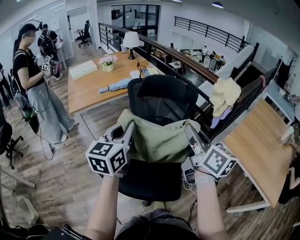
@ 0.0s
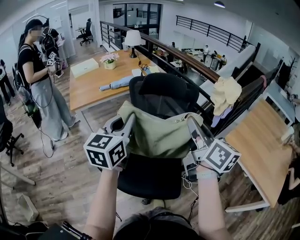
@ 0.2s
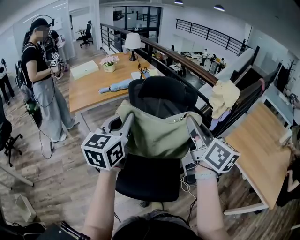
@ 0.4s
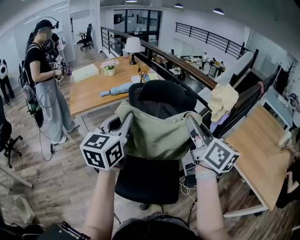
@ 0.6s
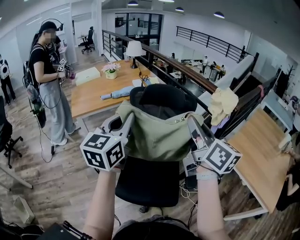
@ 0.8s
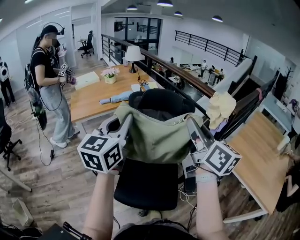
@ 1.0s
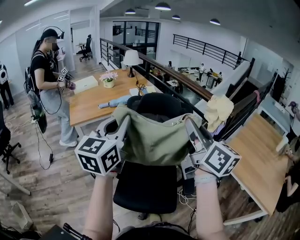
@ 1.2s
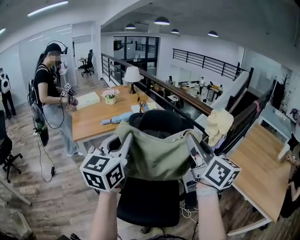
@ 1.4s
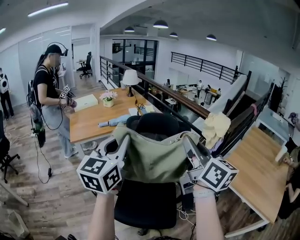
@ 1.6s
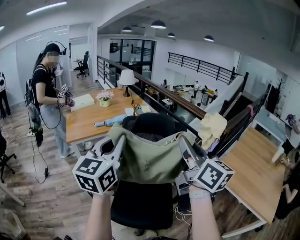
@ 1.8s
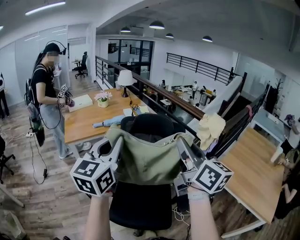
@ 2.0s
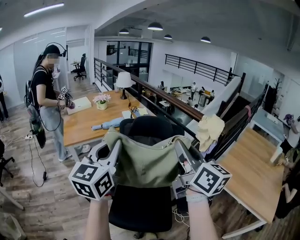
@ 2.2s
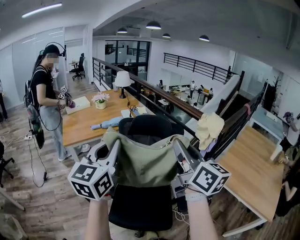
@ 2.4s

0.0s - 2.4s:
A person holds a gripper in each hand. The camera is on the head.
0.0s - 1.2s: Both grippers travel together upward, roughly 10 cm.
1.2s - 2.4s: The grippers stay close to where they were, moving slightly.

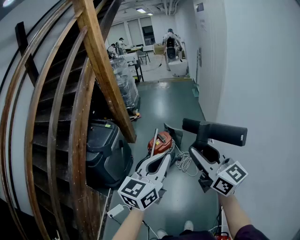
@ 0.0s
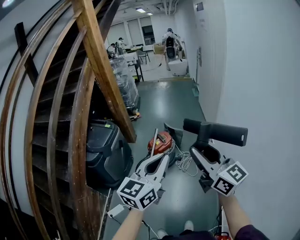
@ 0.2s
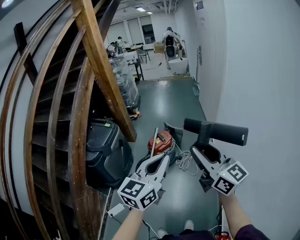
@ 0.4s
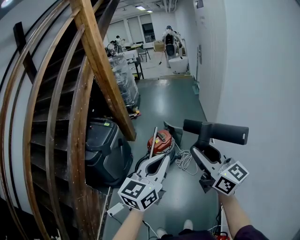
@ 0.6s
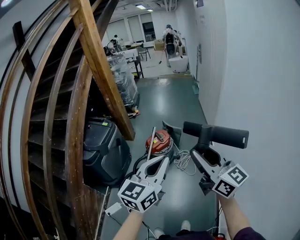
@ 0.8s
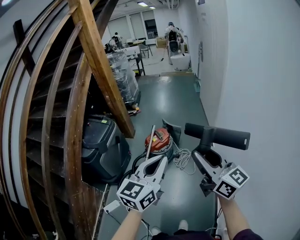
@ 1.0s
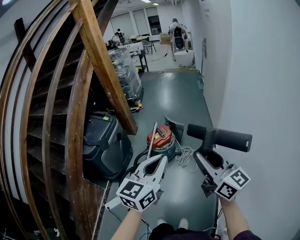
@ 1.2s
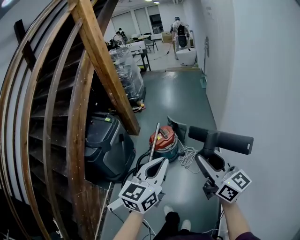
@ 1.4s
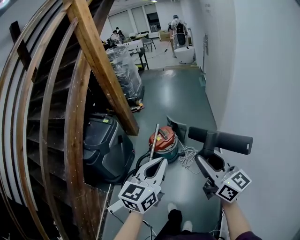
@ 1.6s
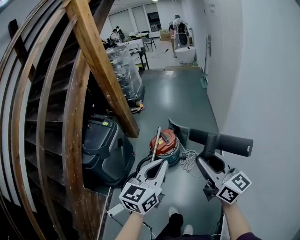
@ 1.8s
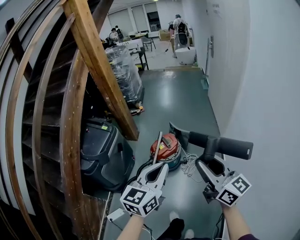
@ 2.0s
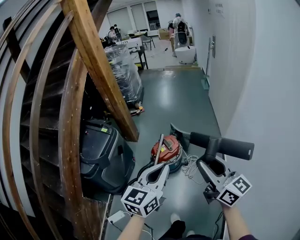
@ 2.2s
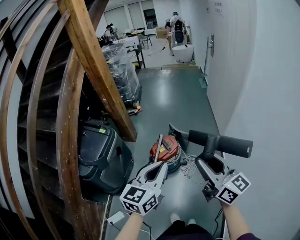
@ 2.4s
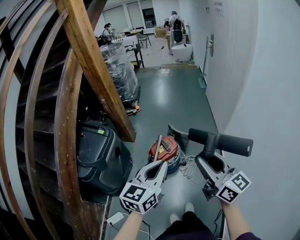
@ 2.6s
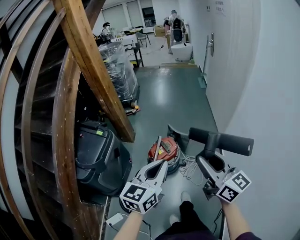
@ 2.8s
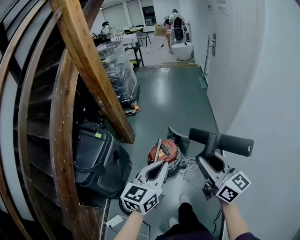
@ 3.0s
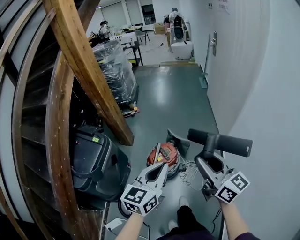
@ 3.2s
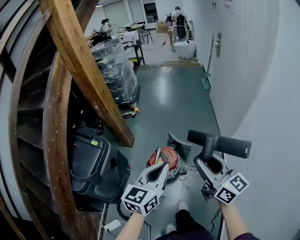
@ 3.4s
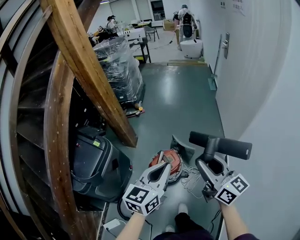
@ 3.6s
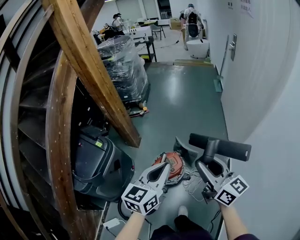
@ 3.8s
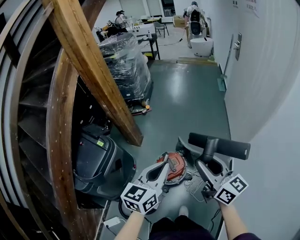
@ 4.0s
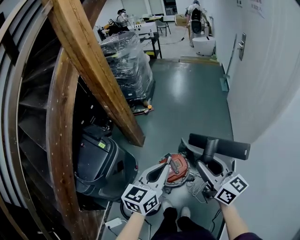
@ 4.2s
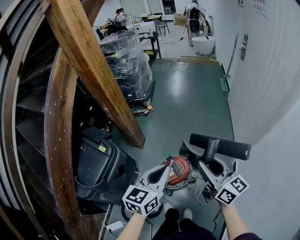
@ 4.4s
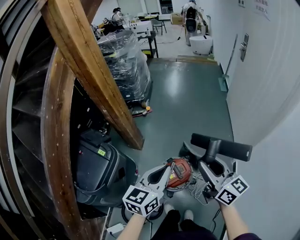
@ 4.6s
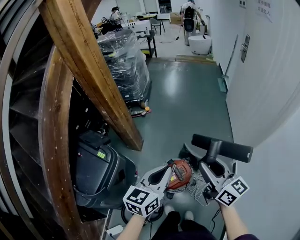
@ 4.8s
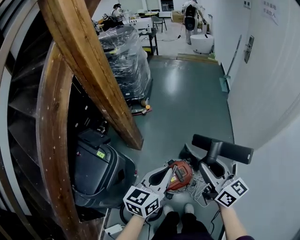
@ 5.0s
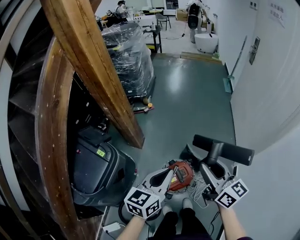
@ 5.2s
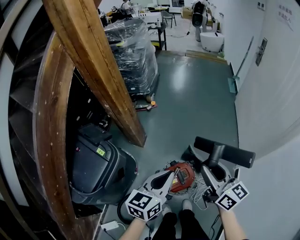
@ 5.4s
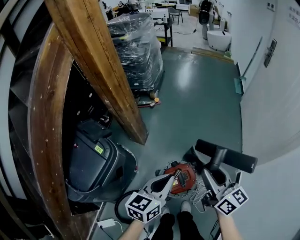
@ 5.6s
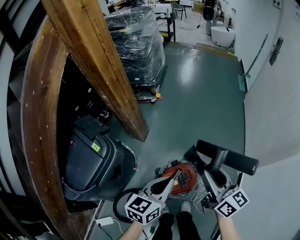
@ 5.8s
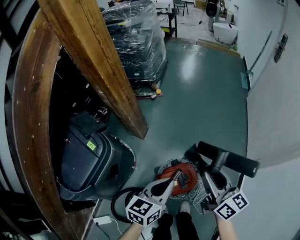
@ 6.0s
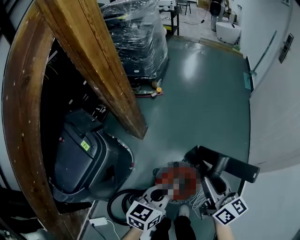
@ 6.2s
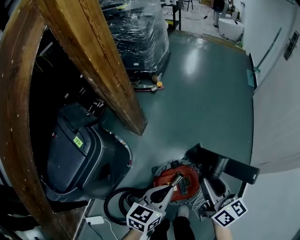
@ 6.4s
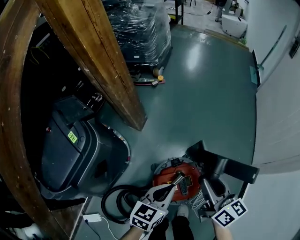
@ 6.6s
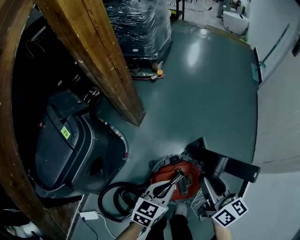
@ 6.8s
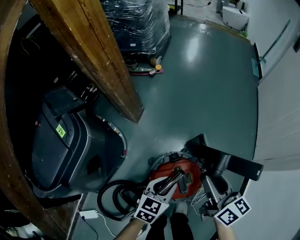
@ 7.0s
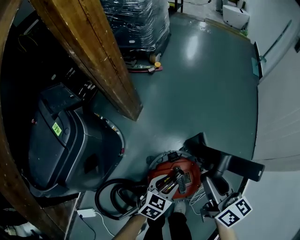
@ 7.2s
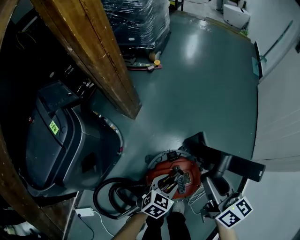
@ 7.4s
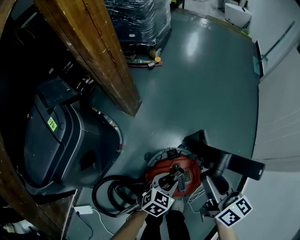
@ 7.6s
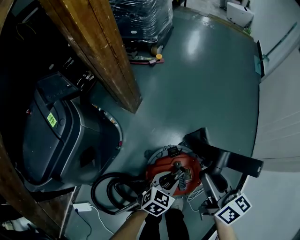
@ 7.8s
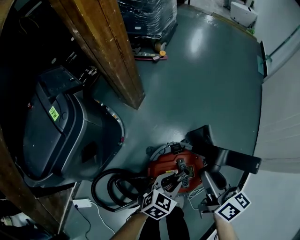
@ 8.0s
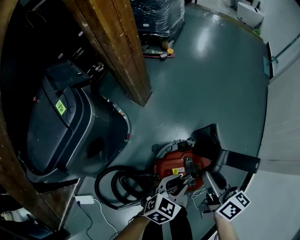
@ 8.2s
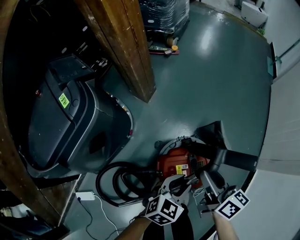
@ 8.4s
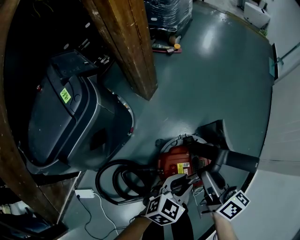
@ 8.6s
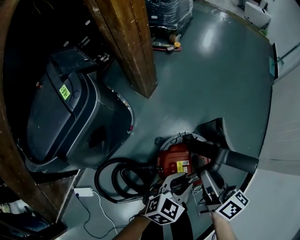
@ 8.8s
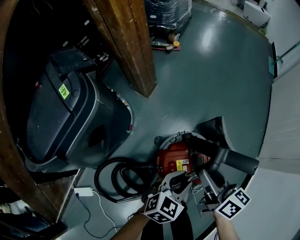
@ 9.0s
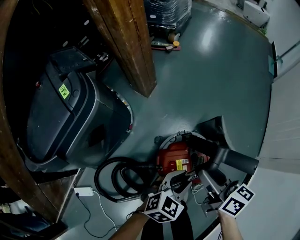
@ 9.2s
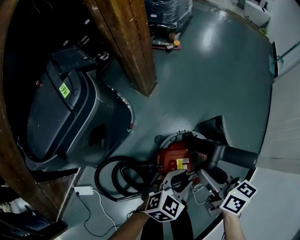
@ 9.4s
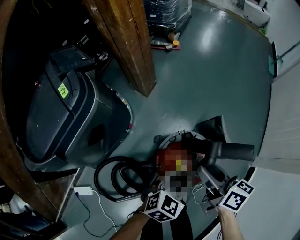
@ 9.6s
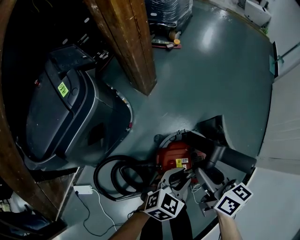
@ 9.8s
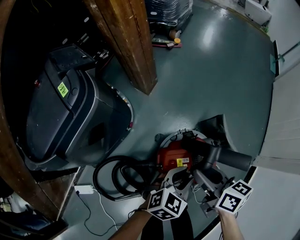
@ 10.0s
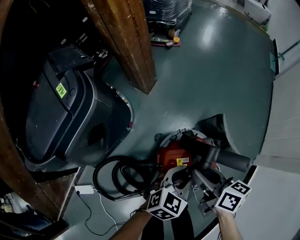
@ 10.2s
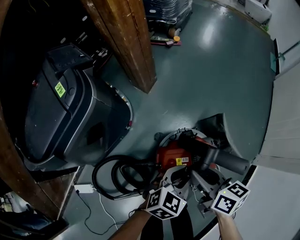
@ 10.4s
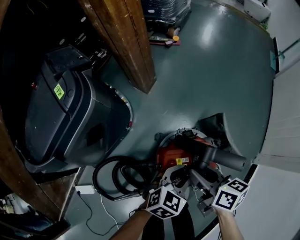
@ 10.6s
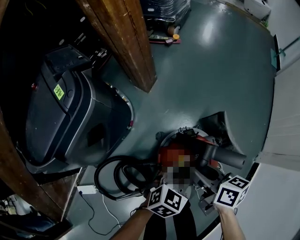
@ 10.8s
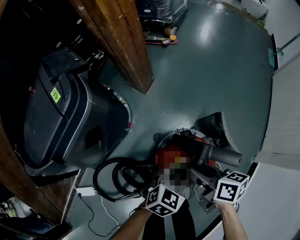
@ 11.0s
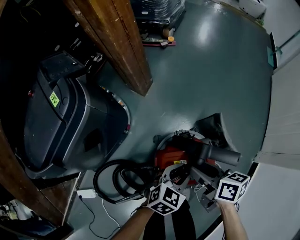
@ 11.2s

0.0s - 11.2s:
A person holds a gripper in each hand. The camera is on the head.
0.0s - 1.6s: The right gripper is displaced forward, downward and to the right by about 15 cm. Meanwhile the left gripper heads forward and downward, covering roughly 10 cm.
1.6s - 3.2s: The two grippers go about 30 cm forward.
3.2s - 4.8s: Both grippers travel together forward, some 25 cm.
4.8s - 6.4s: The right gripper heads downward and forward, covering approximately 30 cm; the left gripper travels downward by approximately 30 cm.
6.4s - 8.0s: The left gripper shifts roughly 20 cm downward, changes its angle by about 20 degrees, and opens its fingers. Meanwhile the right gripper goes about 15 cm downward.
8.0s - 9.6s: The right gripper shifts some 5 cm to the left.
9.6s - 11.2s: The right gripper goes roughly 5 cm downward.

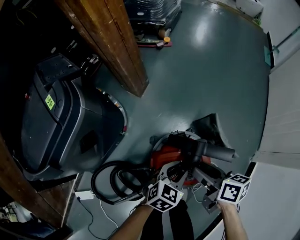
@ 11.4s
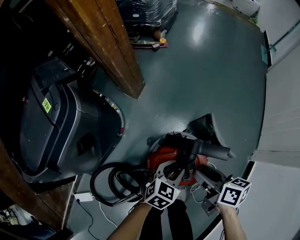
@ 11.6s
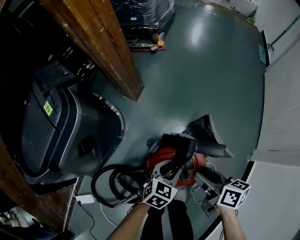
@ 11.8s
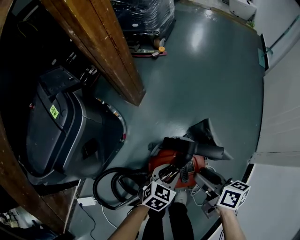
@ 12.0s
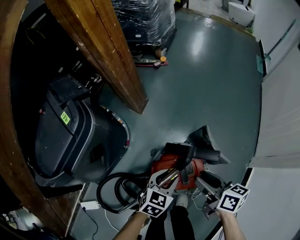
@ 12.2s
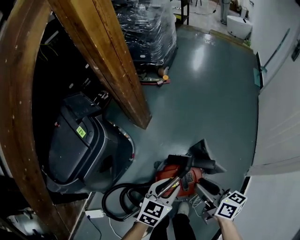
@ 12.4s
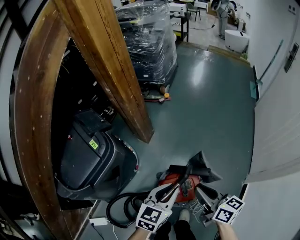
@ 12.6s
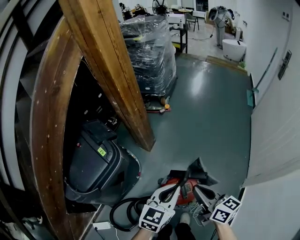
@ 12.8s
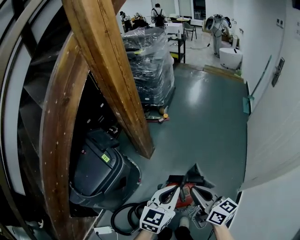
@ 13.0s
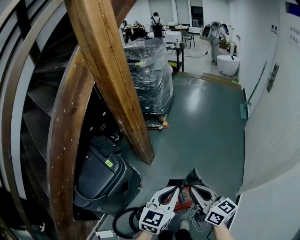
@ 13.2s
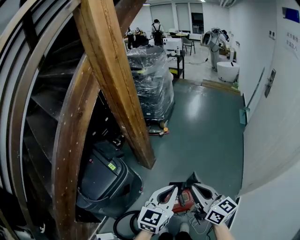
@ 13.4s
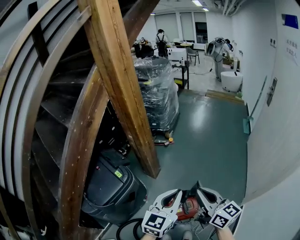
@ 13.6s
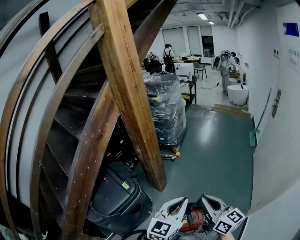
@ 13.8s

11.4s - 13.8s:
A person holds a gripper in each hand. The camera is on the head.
11.4s - 12.6s: The grippers both shift upward by about 25 cm. The right gripper rotates approximately 30 degrees, and closes up, while the left gripper swivels about 20 degrees.
12.6s - 13.8s: The two grippers go some 30 cm upward. The left gripper turns by roughly 20 degrees; the right gripper turns by about 20 degrees.

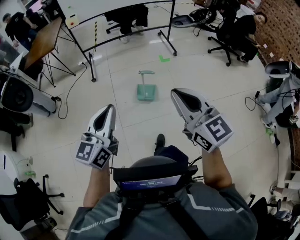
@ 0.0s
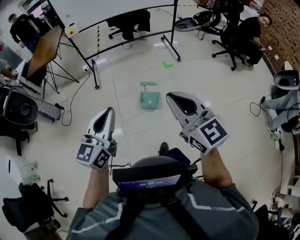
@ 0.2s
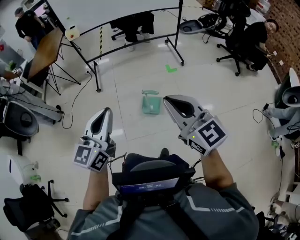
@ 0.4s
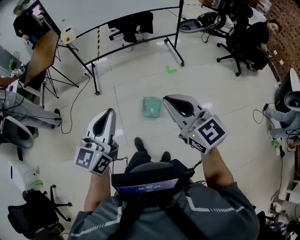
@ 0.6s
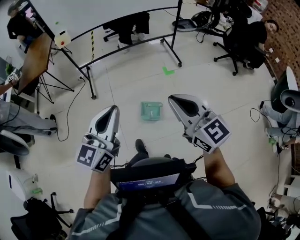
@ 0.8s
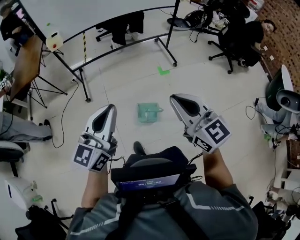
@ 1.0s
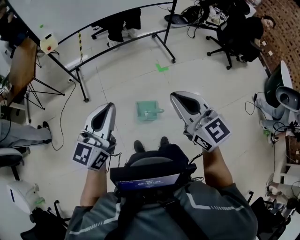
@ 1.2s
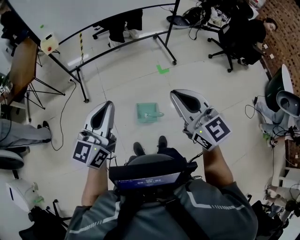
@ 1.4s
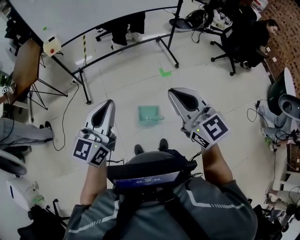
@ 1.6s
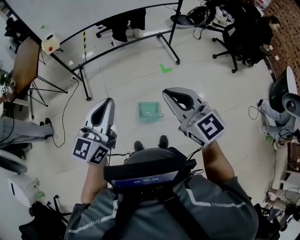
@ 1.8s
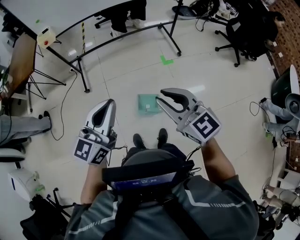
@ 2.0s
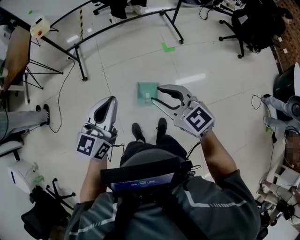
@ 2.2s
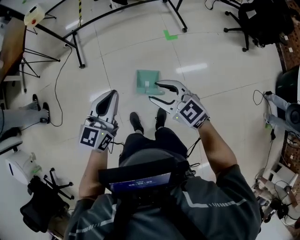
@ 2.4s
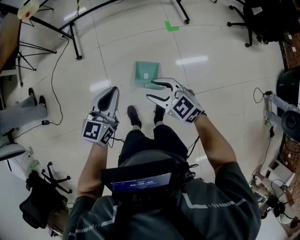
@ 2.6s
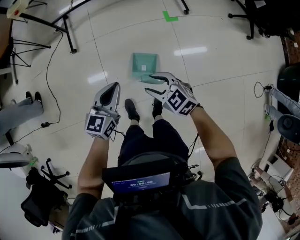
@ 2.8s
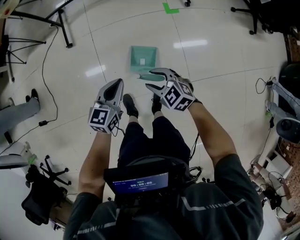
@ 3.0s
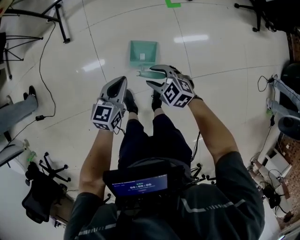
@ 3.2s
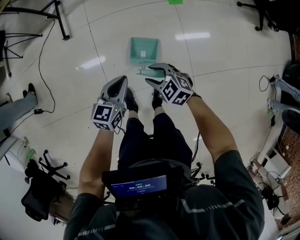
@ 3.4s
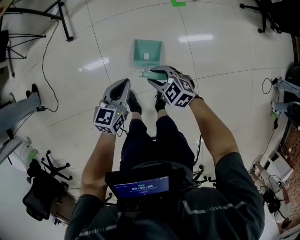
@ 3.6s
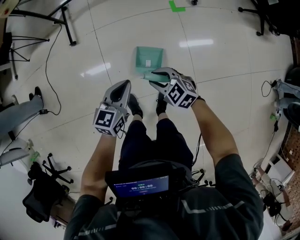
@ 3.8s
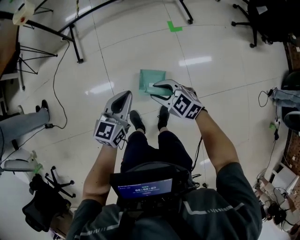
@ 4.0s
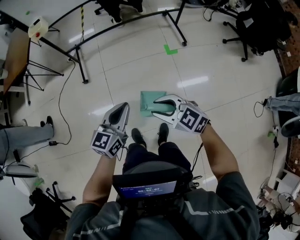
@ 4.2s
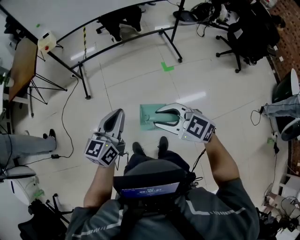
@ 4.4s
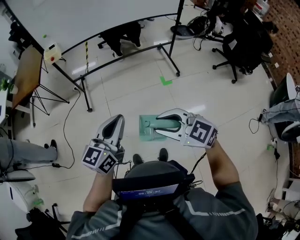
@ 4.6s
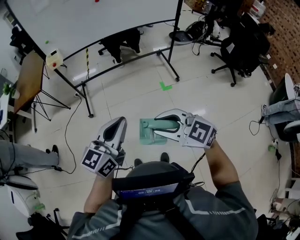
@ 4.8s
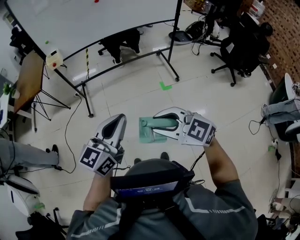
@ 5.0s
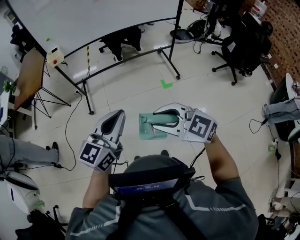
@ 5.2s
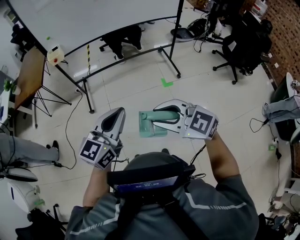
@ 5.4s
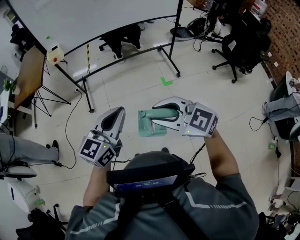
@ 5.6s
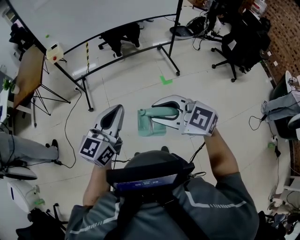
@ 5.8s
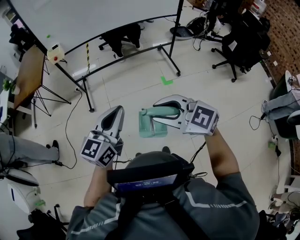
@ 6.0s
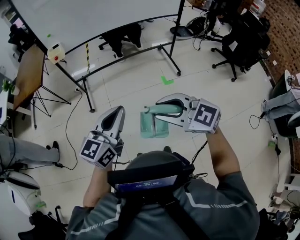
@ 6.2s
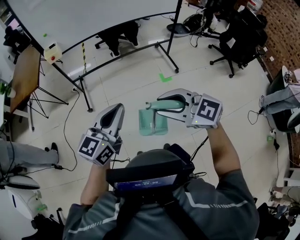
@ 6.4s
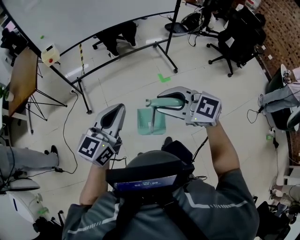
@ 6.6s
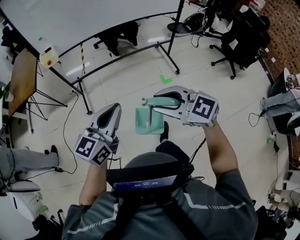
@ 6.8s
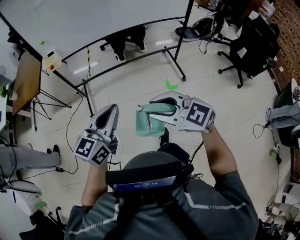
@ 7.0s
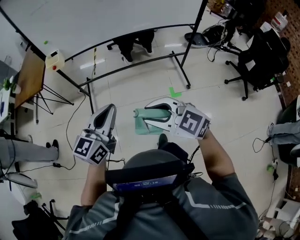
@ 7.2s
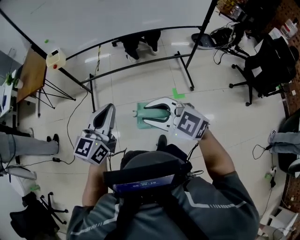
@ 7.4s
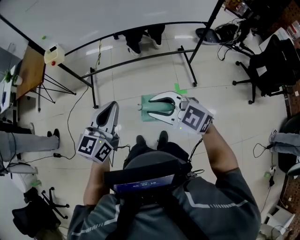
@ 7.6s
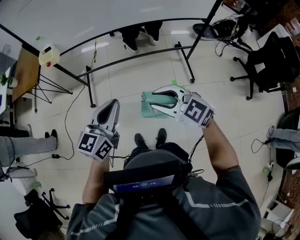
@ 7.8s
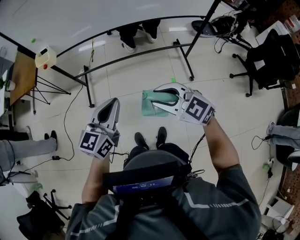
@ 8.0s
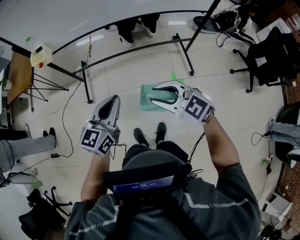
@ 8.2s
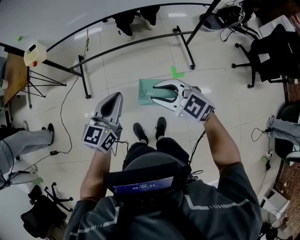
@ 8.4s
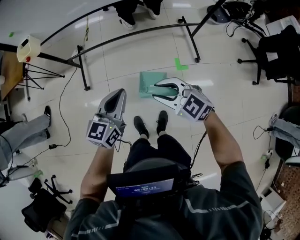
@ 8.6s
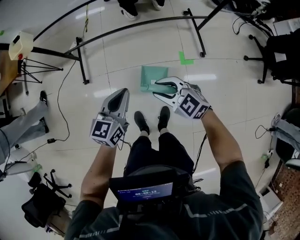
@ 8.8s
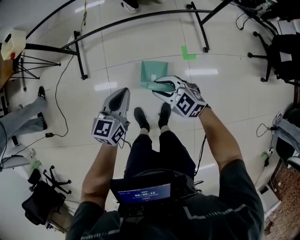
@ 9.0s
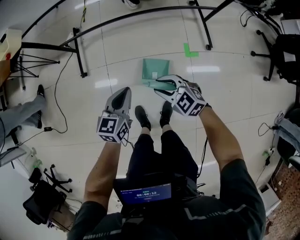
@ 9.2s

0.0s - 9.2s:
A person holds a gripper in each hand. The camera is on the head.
0.0s - 1.6s: The pair of grippers is taken forward, roughly 60 cm.
1.6s - 3.0s: The grippers both shift downward by some 50 cm. The left gripper rotates about 30 degrees. The right gripper angles its fingers downward, by approximately 40 degrees, and opens.
3.0s - 4.6s: Both grippers move upward, approximately 40 cm. The right gripper turns by about 20 degrees; the left gripper swivels roughly 20 degrees.
4.6s - 6.2s: The left gripper is displaced to the left by about 5 cm. The right gripper is displaced to the left and upward by about 10 cm.
6.2s - 7.6s: Both grippers travel together forward and to the right, approximately 40 cm.
7.6s - 9.2s: The right gripper heads downward and forward, covering roughly 50 cm, while the left gripper heads downward, covering some 50 cm, and turns by some 20 degrees.
